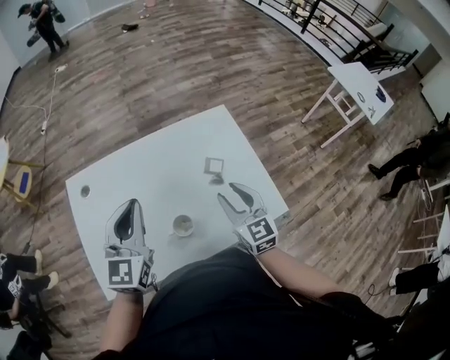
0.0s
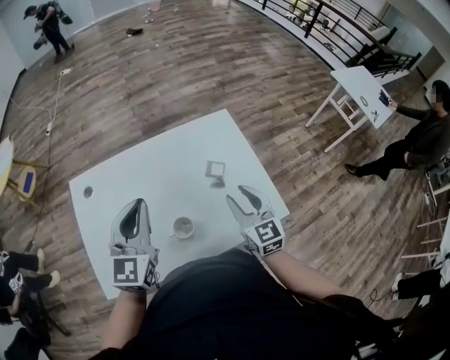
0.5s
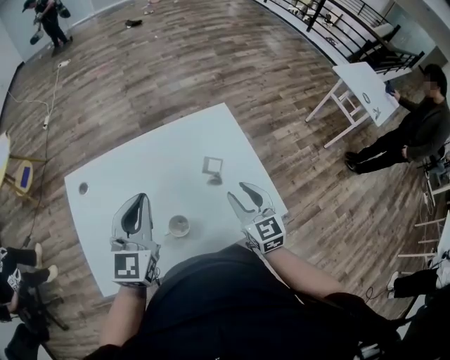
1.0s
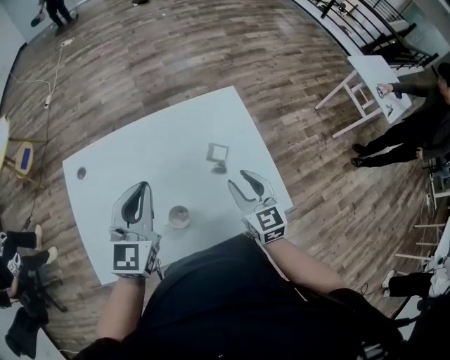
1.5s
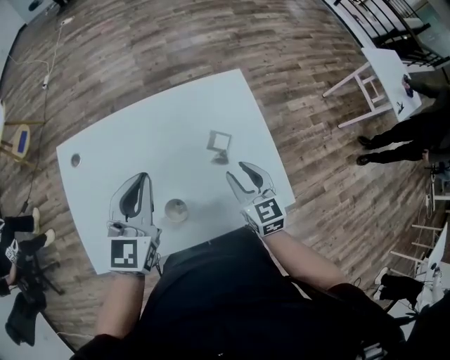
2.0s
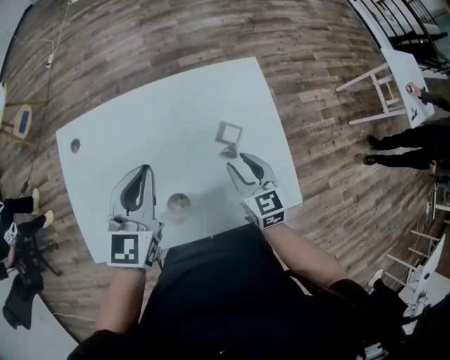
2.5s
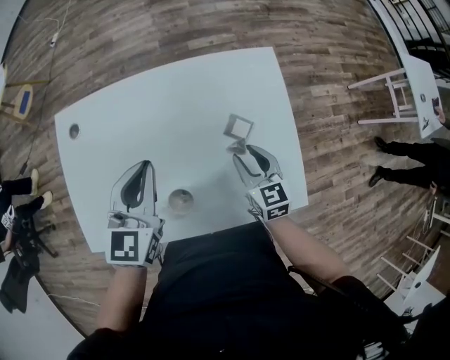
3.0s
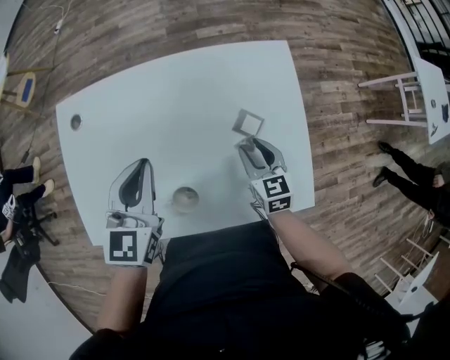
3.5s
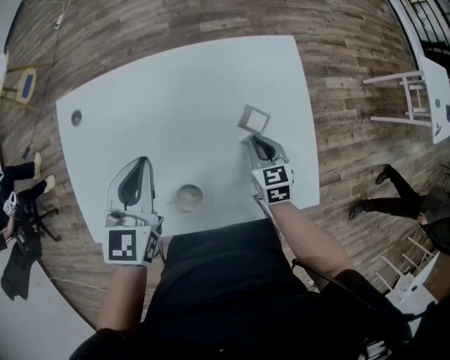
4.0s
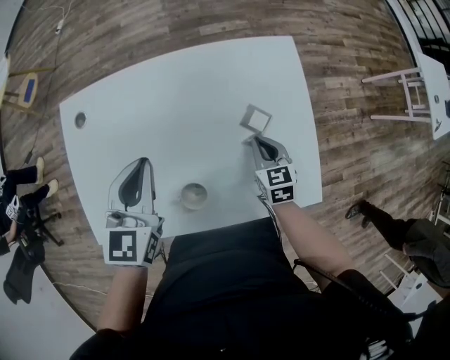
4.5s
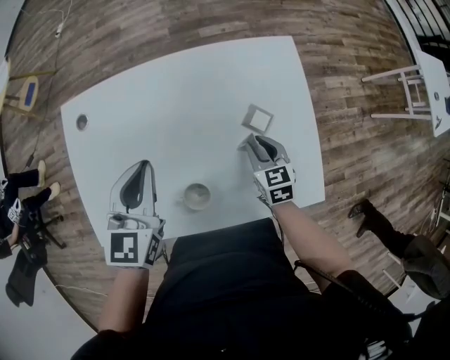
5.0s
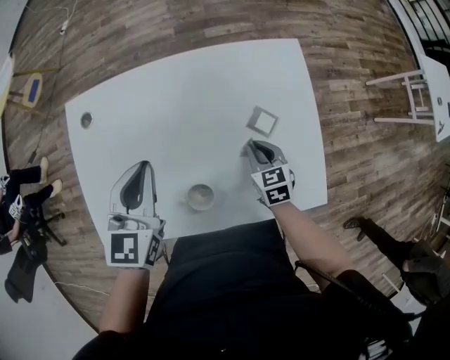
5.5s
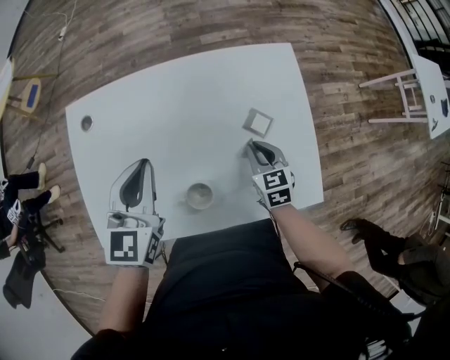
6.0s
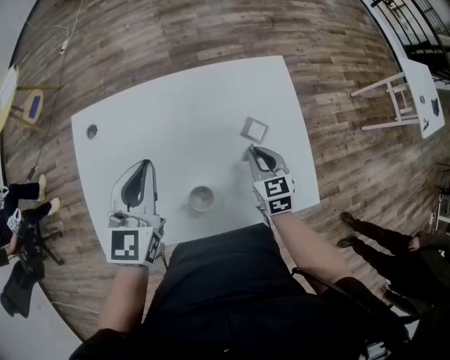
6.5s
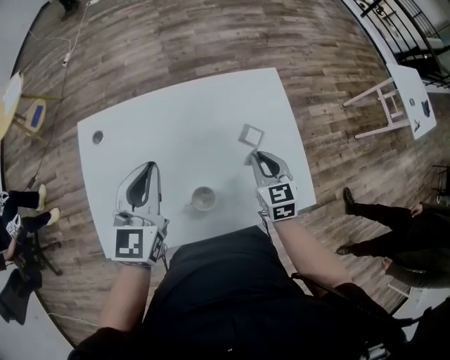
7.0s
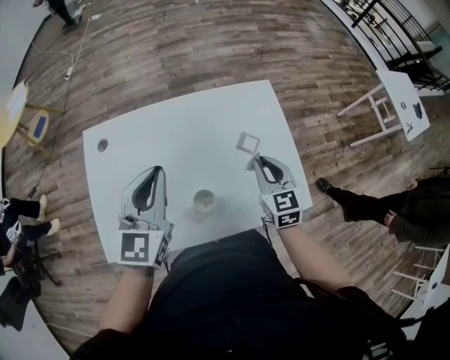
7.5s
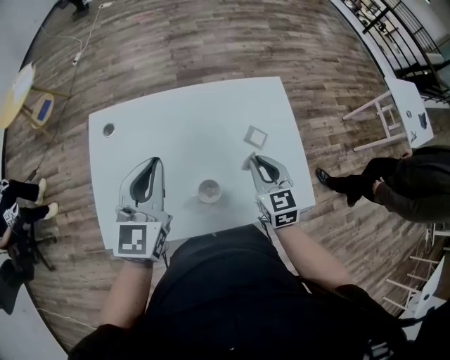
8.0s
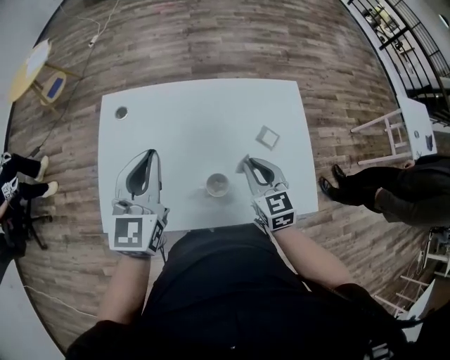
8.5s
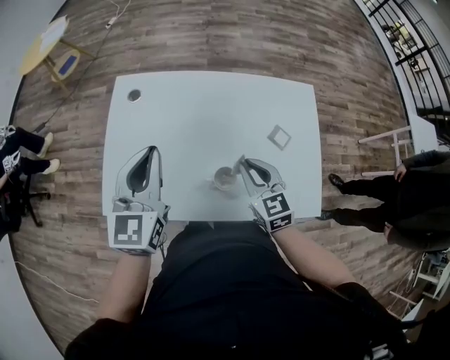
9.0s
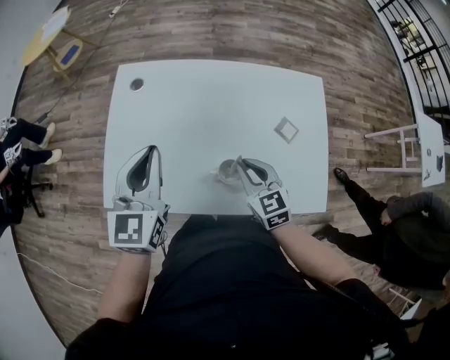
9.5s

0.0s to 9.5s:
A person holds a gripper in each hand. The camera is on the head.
0.0s to 2.0s: The left gripper moves about 5 cm. Meanwhile the right gripper shifts roughly 5 cm downward.
2.0s to 4.0s: The right gripper is displaced downward by approximately 10 cm, and closes; the left gripper goes some 5 cm downward.
4.0s to 5.5s: The grippers move only a little.
5.5s to 7.5s: The left gripper is displaced upward by roughly 5 cm, while the right gripper travels upward by approximately 15 cm, and turns by some 20 degrees.
7.5s to 9.5s: The grippers both shift to the left by some 10 cm. The right gripper turns by about 30 degrees.

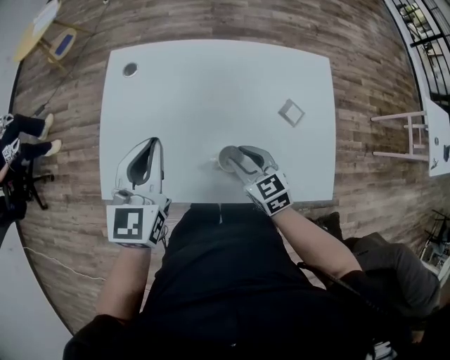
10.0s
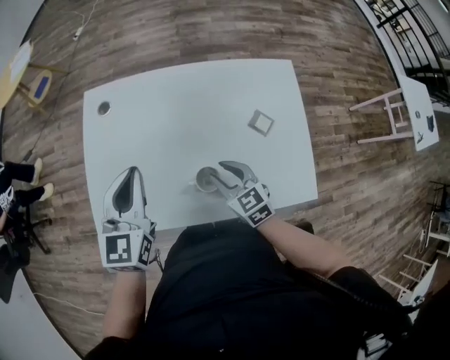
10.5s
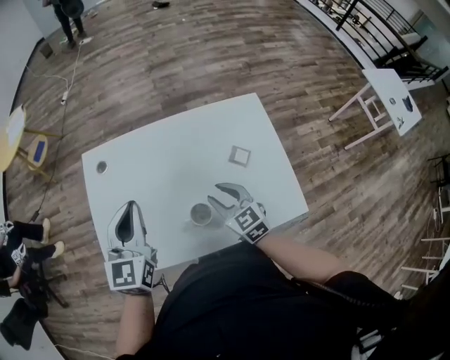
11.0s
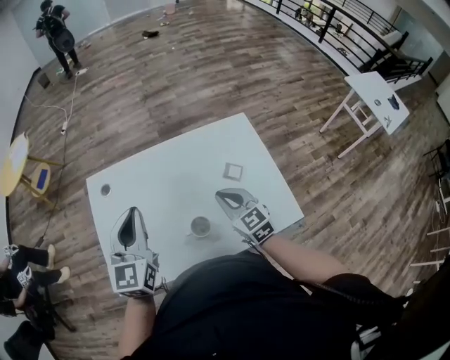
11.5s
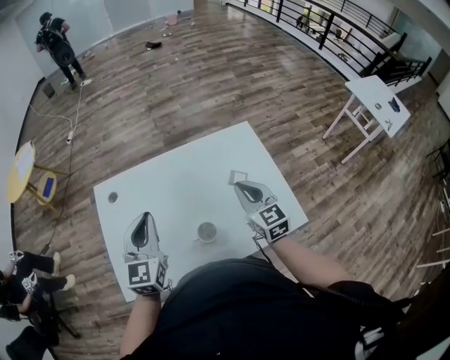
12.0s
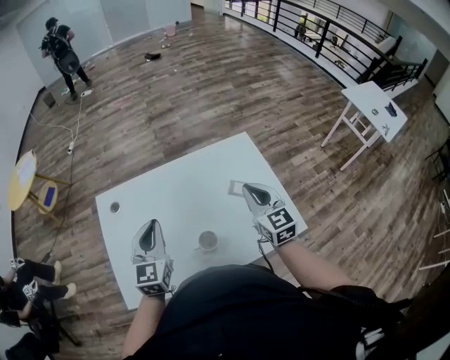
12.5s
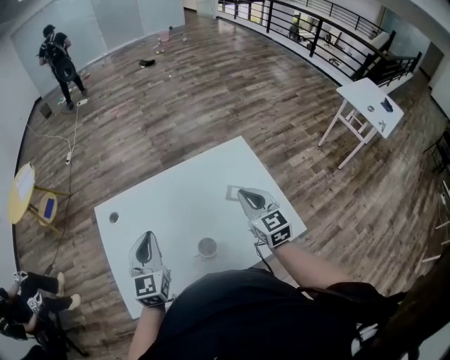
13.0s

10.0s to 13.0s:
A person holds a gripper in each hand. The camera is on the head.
10.0s to 11.5s: The left gripper goes some 5 cm upward. Meanwhile the right gripper travels upward and to the right by some 10 cm, swivels approximately 20 degrees, and closes its fingers.
11.5s to 13.0s: The right gripper goes some 10 cm to the right and upward. The left gripper travels downward by some 5 cm.

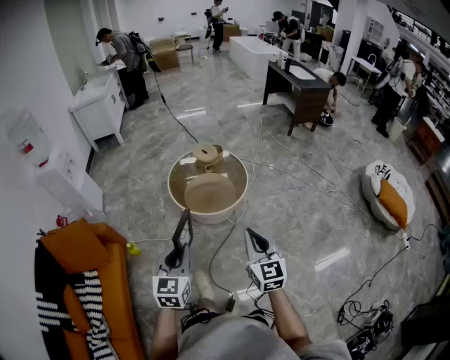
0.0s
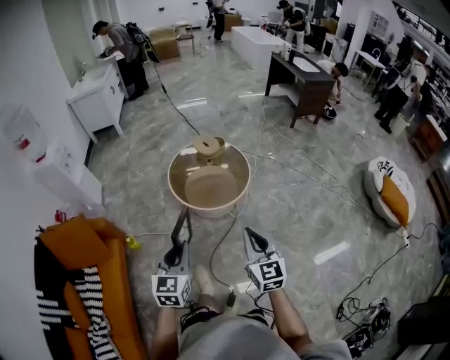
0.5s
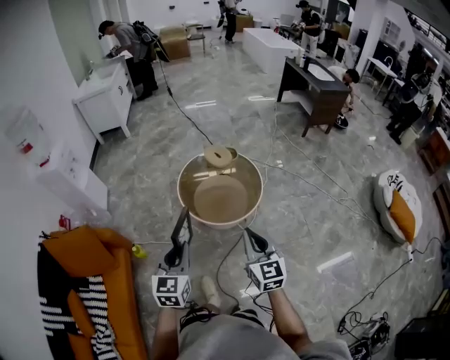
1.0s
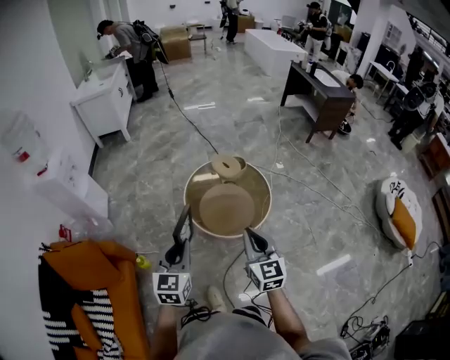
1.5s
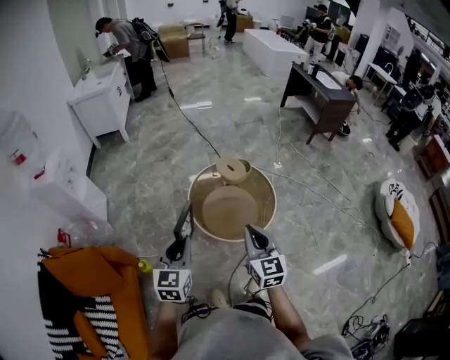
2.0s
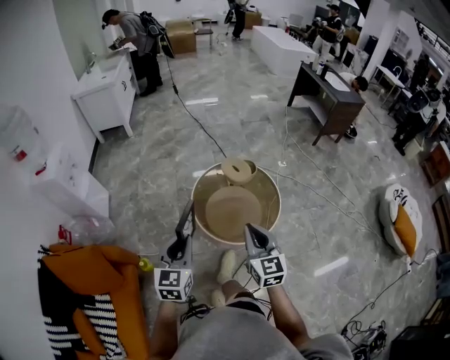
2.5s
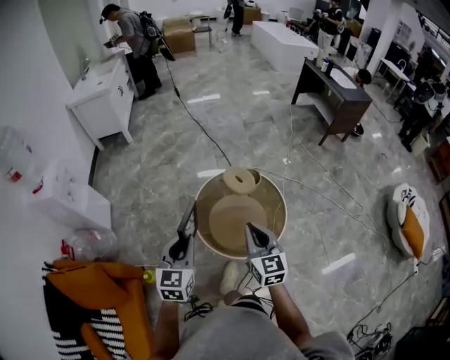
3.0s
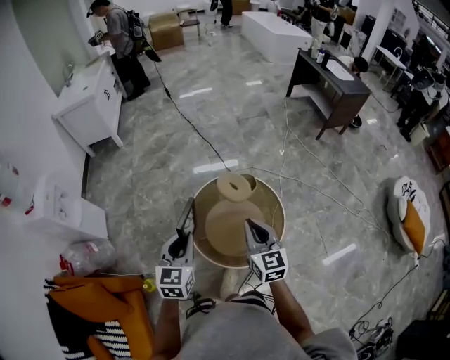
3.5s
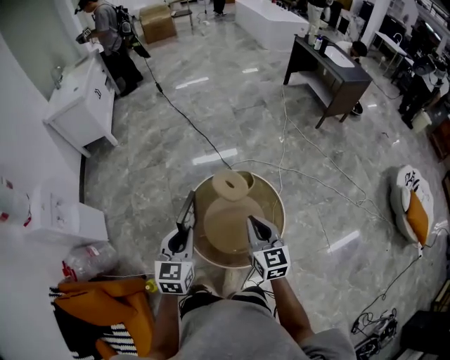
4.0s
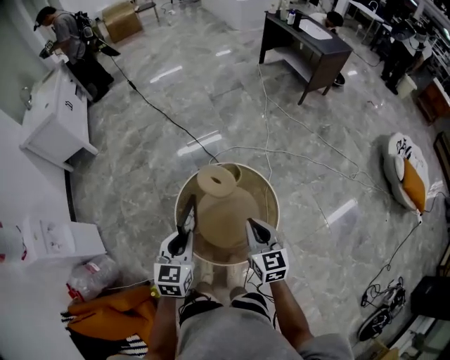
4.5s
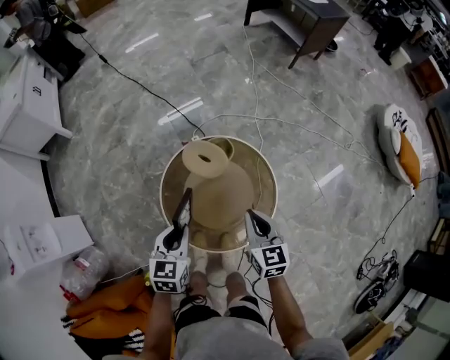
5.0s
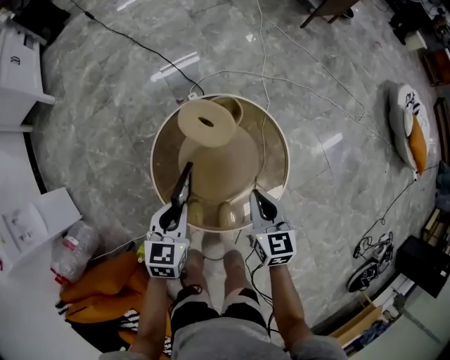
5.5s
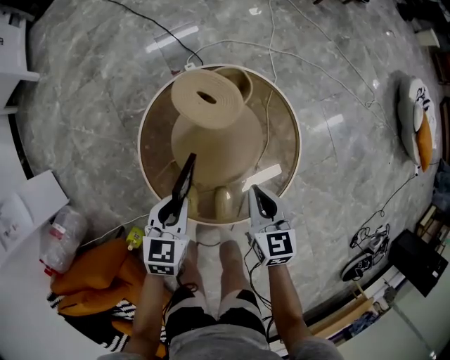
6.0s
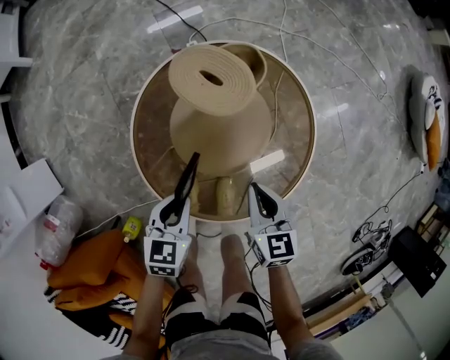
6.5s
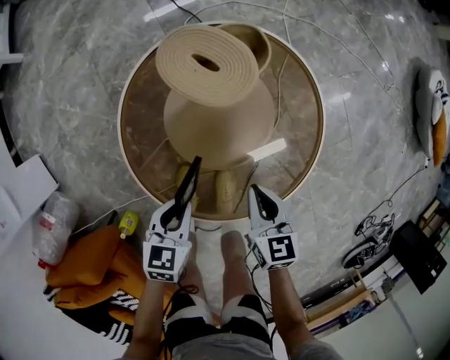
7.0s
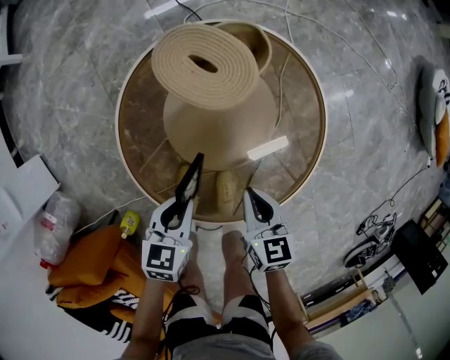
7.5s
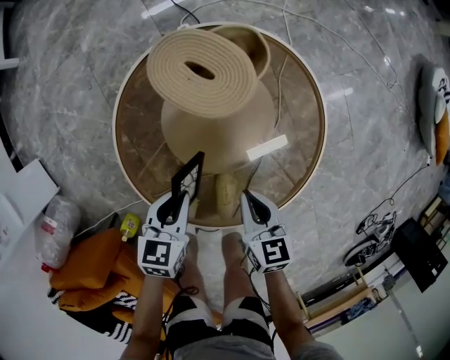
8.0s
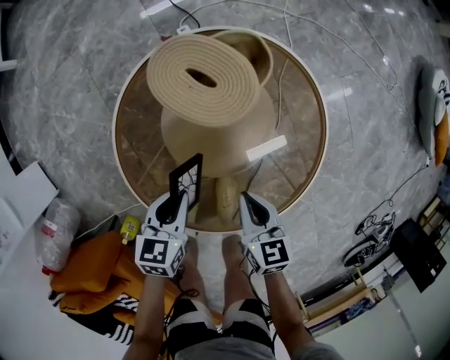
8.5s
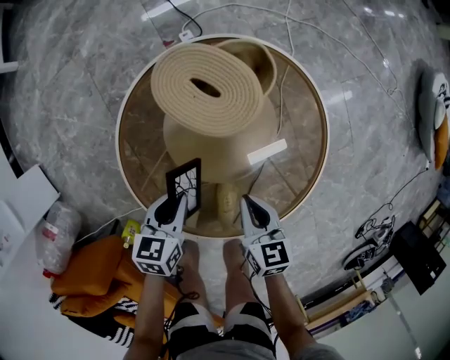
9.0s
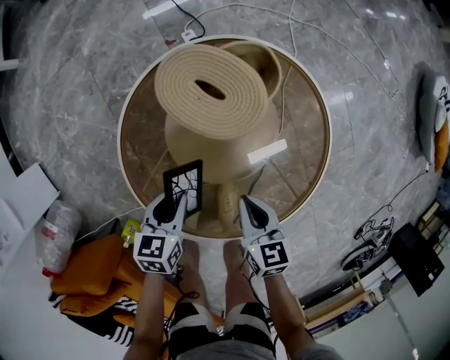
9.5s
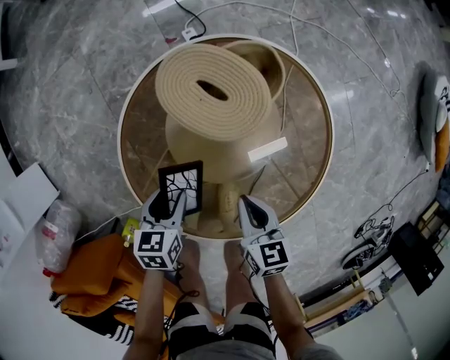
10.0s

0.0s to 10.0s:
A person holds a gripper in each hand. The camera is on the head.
0.0s to 2.0s: Both grippers move forward and to the left, roughly 35 cm.
2.0s to 4.0s: Both grippers travel together forward, about 30 cm.
4.0s to 6.0s: The grippers both shift downward by roughly 35 cm. The right gripper rotates some 30 degrees. The left gripper changes its angle by approximately 30 degrees.
6.0s to 8.0s: The two grippers go some 15 cm downward.
8.0s to 10.0s: The left gripper heads downward and to the left, covering roughly 10 cm, and opens.

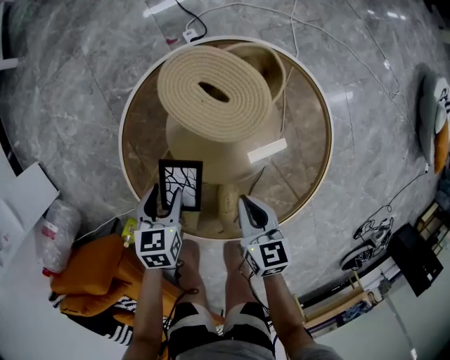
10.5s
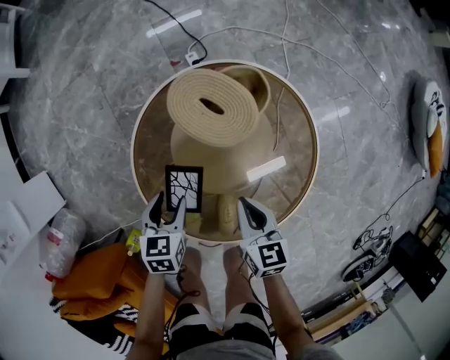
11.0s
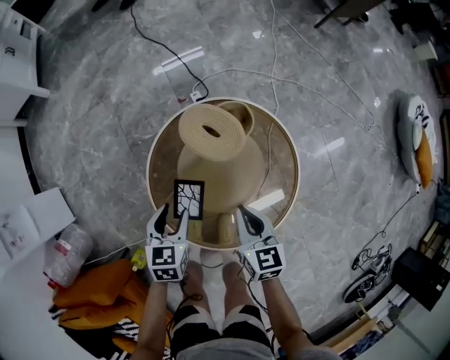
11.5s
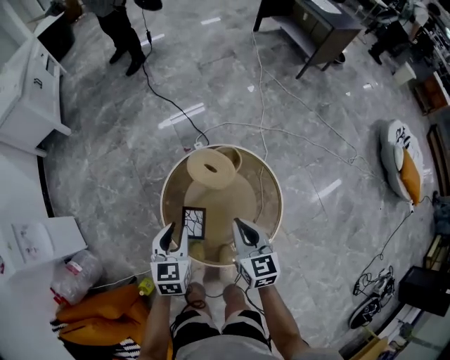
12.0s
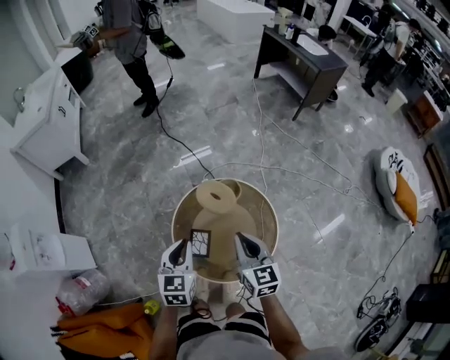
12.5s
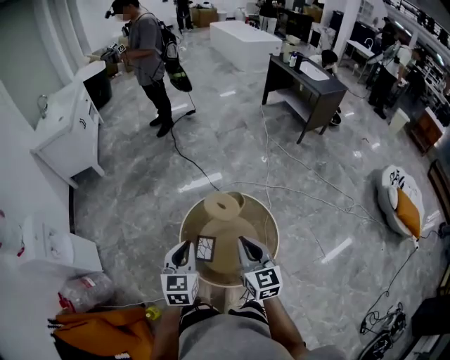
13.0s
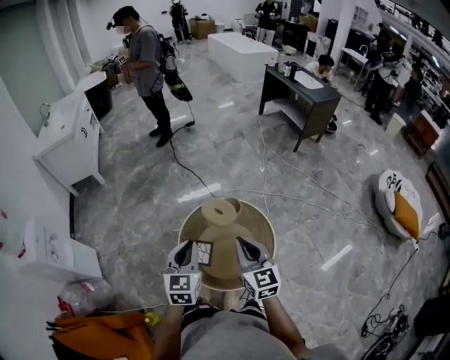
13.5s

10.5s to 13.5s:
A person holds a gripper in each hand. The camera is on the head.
10.5s to 12.0s: Both grippers travel together upward, approximately 35 cm. The left gripper changes its angle by about 30 degrees, and closes up. The right gripper rotates about 20 degrees.
12.0s to 13.5s: The two grippers go approximately 25 cm upward and backward. The left gripper closes up.
